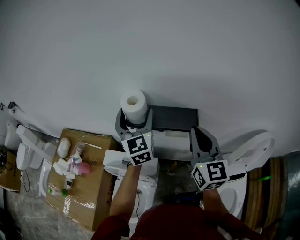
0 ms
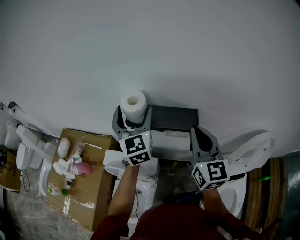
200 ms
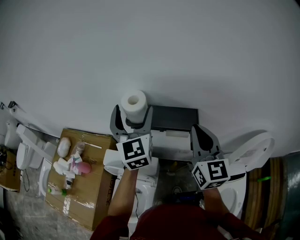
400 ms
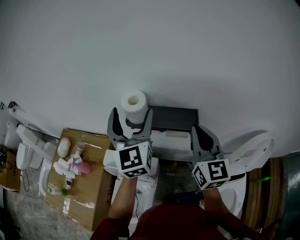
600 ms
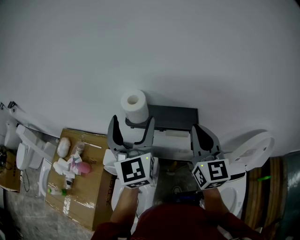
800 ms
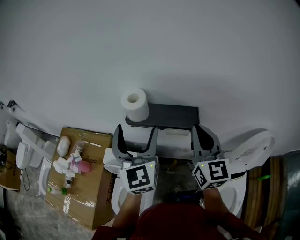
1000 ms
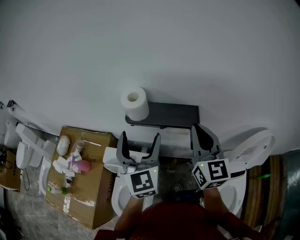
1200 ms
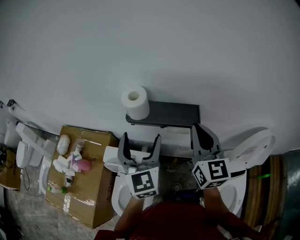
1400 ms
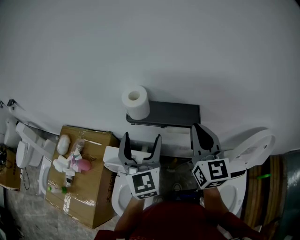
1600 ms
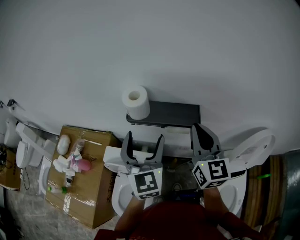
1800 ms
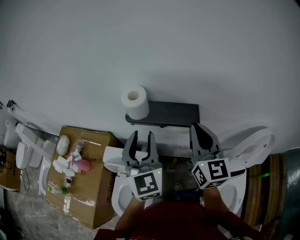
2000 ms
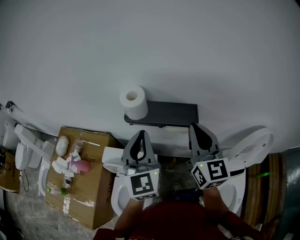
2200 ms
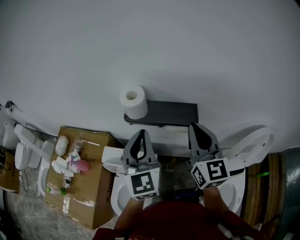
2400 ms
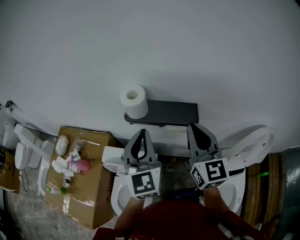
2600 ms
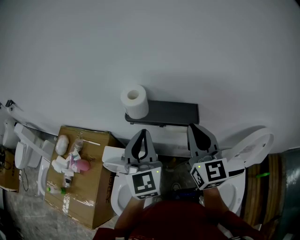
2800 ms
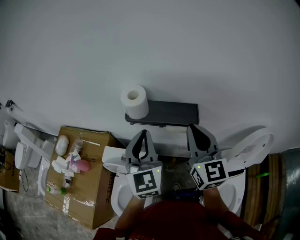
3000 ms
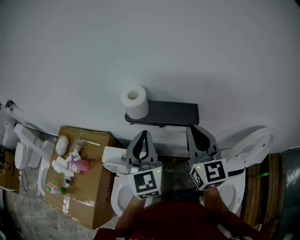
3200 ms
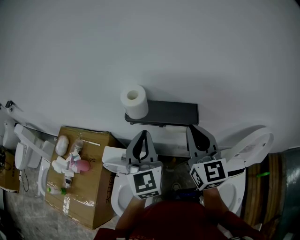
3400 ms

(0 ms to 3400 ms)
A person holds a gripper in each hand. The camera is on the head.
0 ms - 1600 ms: The left gripper goes approximately 10 cm backward.
1600 ms - 3400 ms: The left gripper closes up.

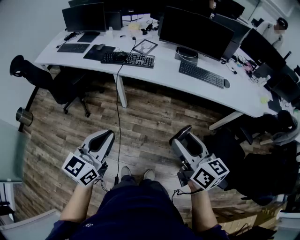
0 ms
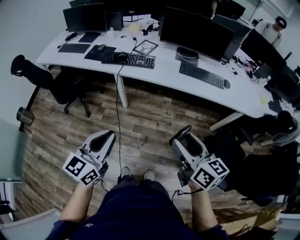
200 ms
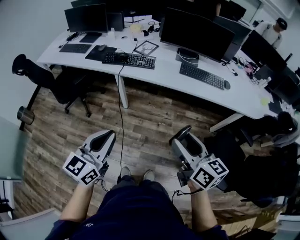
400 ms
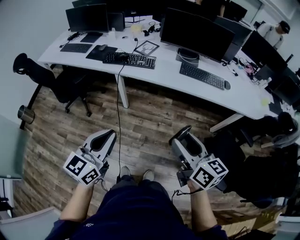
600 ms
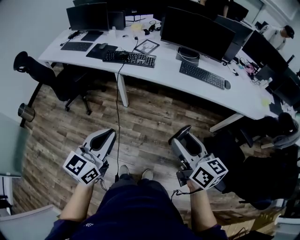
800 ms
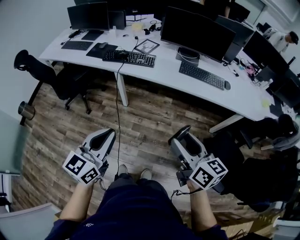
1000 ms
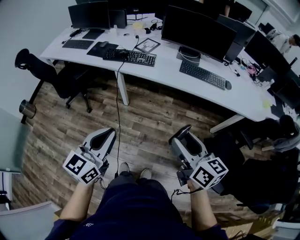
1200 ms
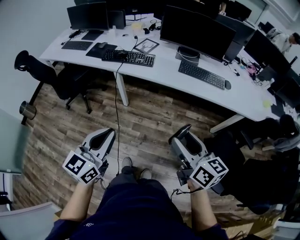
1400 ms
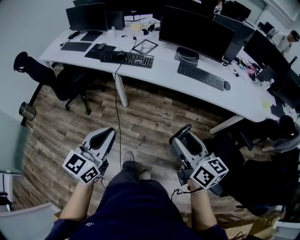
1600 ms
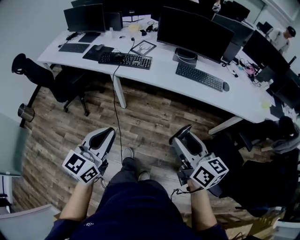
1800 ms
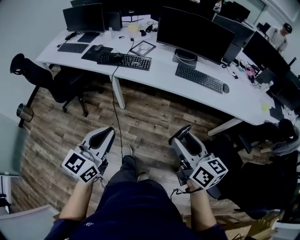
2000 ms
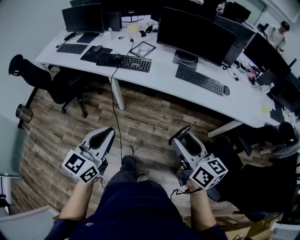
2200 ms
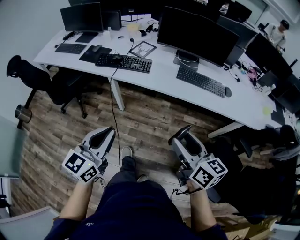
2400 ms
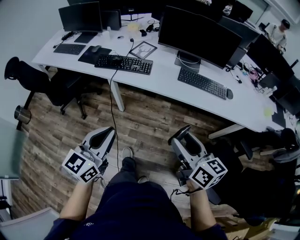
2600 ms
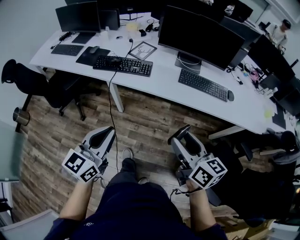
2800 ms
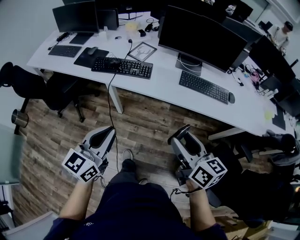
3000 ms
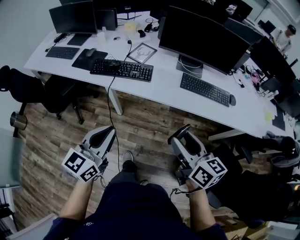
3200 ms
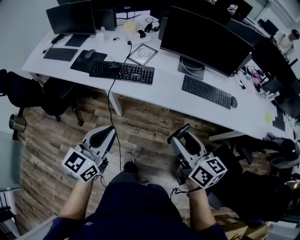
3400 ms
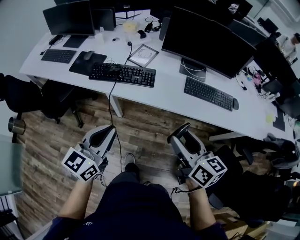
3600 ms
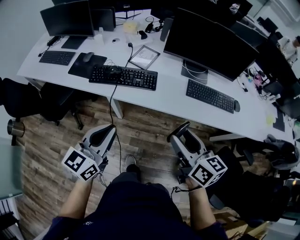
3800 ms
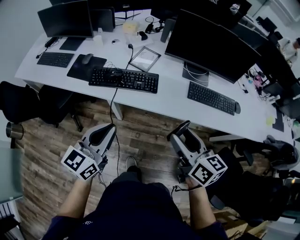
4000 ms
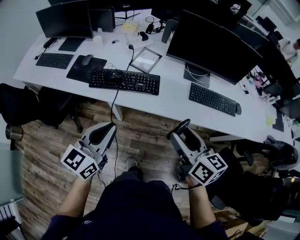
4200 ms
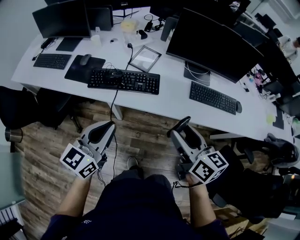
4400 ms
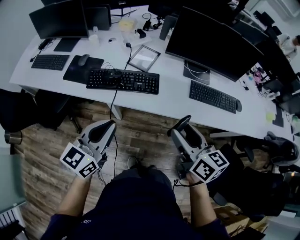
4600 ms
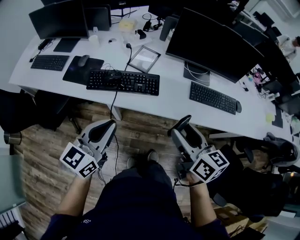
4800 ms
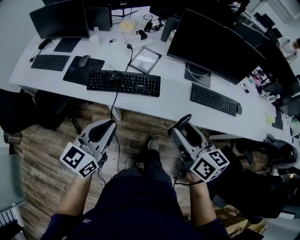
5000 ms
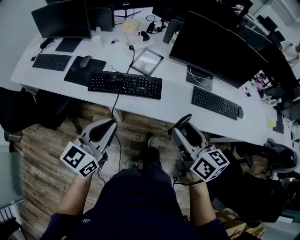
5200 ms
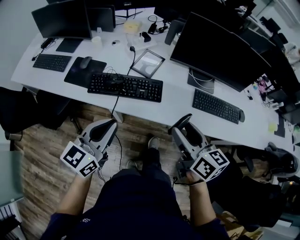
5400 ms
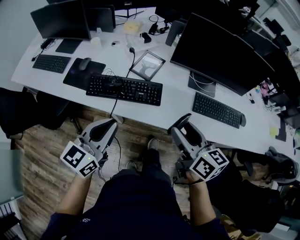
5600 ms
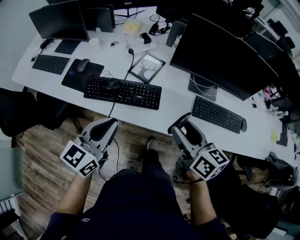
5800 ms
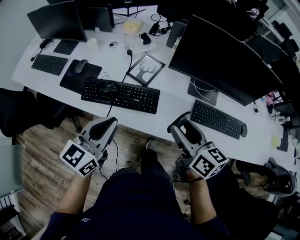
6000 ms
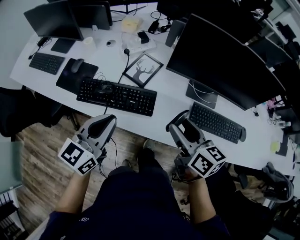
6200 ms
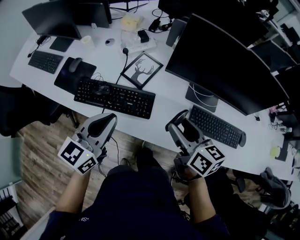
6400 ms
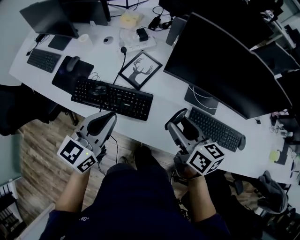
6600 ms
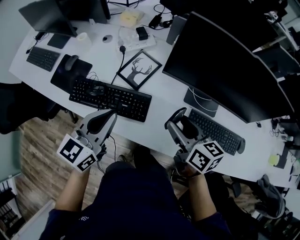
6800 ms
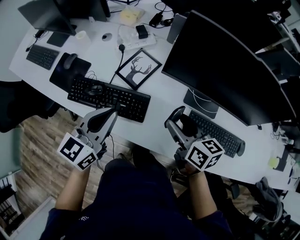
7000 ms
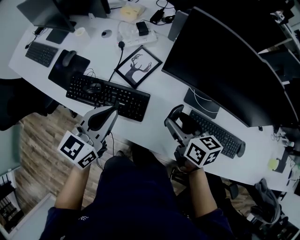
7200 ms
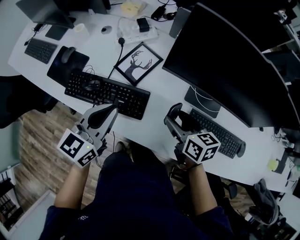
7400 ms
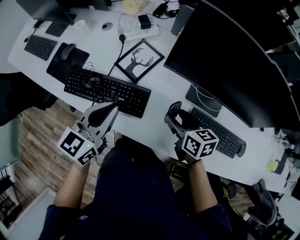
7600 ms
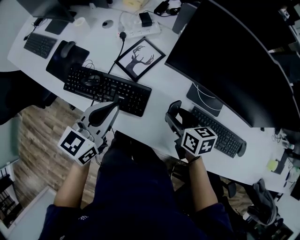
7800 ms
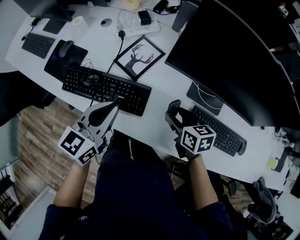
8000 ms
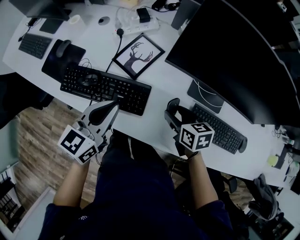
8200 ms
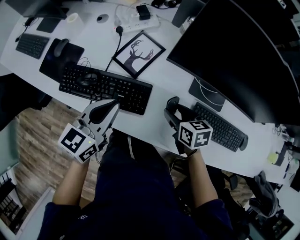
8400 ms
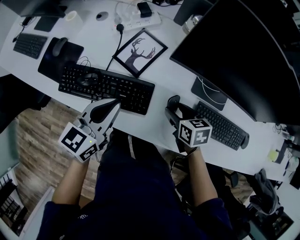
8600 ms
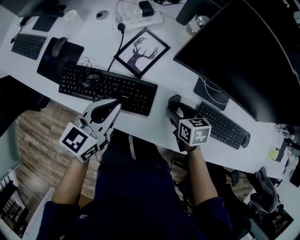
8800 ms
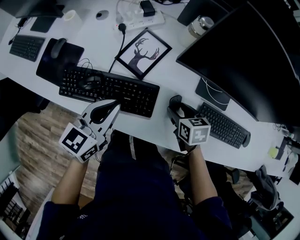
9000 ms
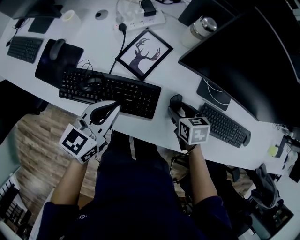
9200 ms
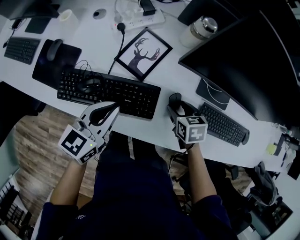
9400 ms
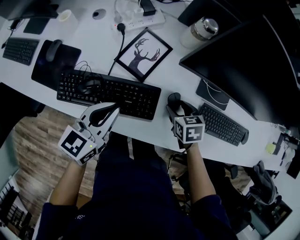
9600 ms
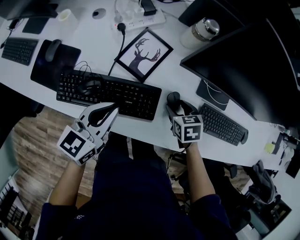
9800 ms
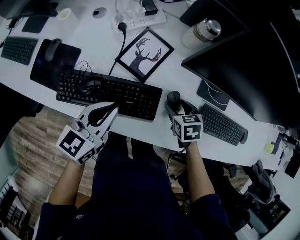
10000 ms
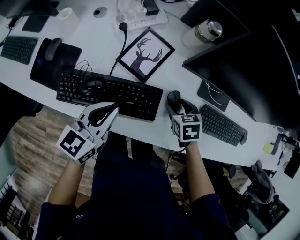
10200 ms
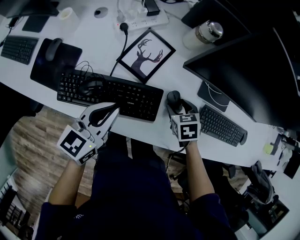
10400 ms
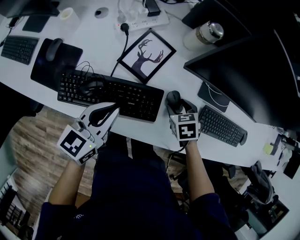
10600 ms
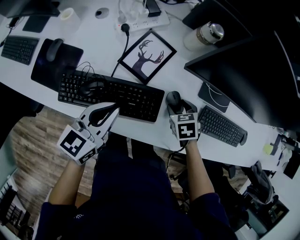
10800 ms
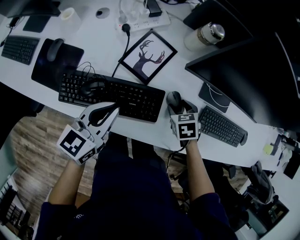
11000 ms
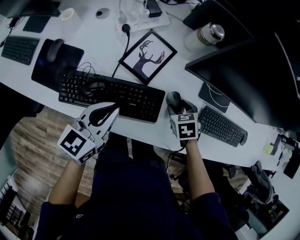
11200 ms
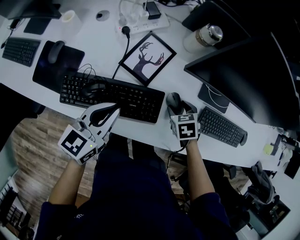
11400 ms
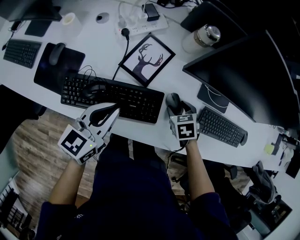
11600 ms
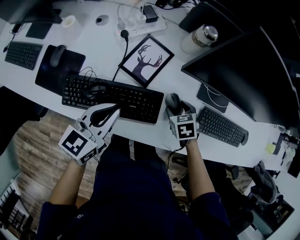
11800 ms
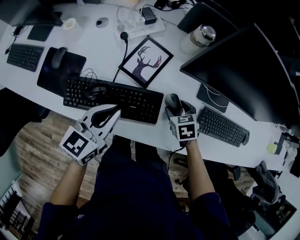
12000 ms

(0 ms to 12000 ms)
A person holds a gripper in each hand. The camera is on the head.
0 ms - 1600 ms: The grippers both shift to the right by about 5 cm.
1600 ms - 3000 ms: Both grippers move forward, some 15 cm.
3000 ms - 4400 ms: Both grippers move forward and to the left, about 20 cm.
4400 ms - 6000 ms: The grippers both shift forward by some 15 cm.
6000 ms - 7600 ms: The right gripper travels downward, forward and to the right by roughly 20 cm, and changes its angle by approximately 20 degrees. Meanwhile the left gripper heads forward, to the right and downward, covering roughly 15 cm.
7600 ms - 9000 ms: The grippers both shift downward by some 10 cm. The right gripper turns by approximately 20 degrees.
9000 ms - 10400 ms: The grippers move only a little.
10400 ms - 12000 ms: The grippers move only a little.

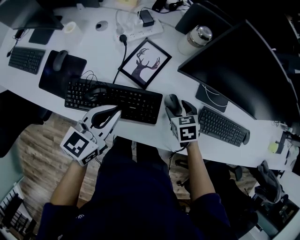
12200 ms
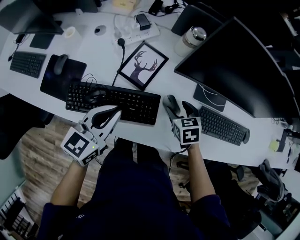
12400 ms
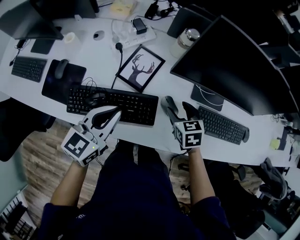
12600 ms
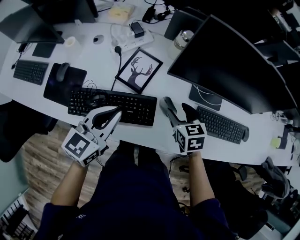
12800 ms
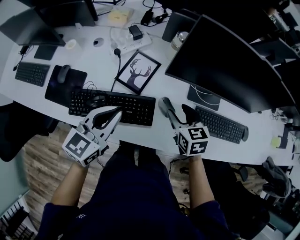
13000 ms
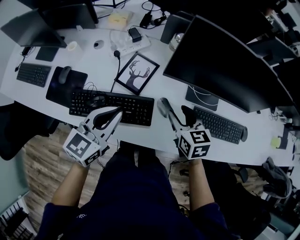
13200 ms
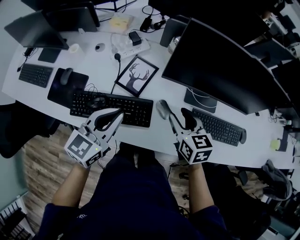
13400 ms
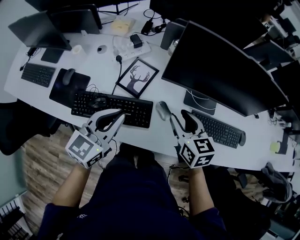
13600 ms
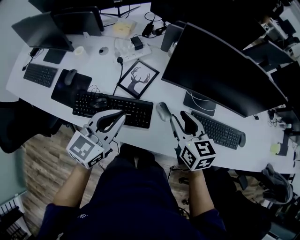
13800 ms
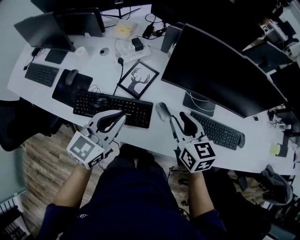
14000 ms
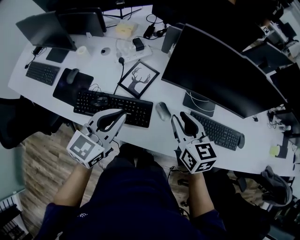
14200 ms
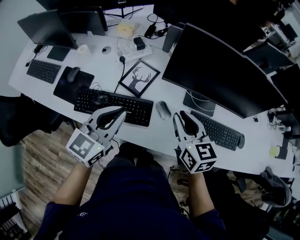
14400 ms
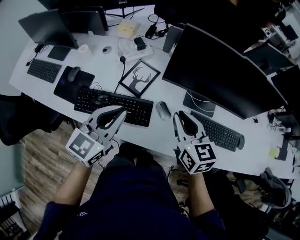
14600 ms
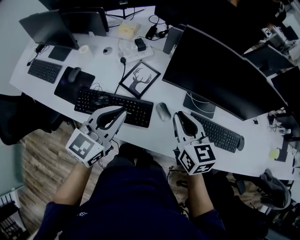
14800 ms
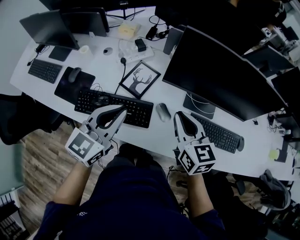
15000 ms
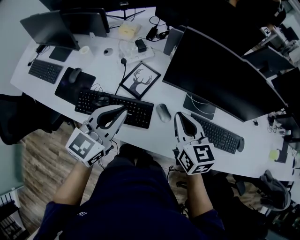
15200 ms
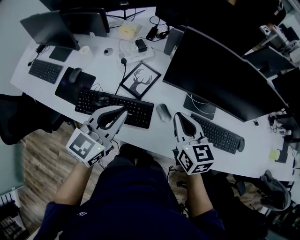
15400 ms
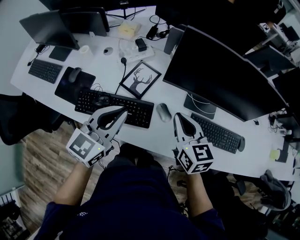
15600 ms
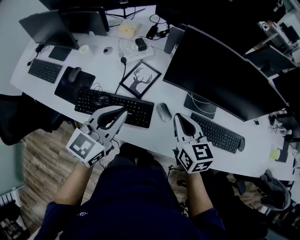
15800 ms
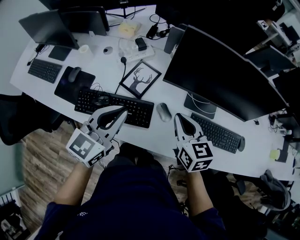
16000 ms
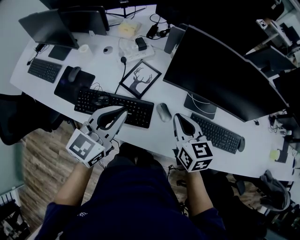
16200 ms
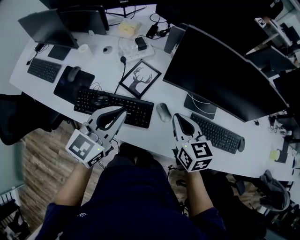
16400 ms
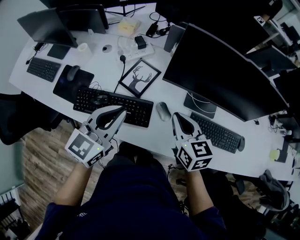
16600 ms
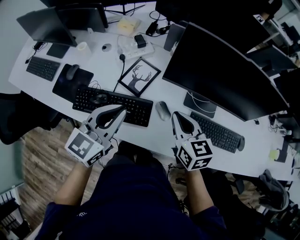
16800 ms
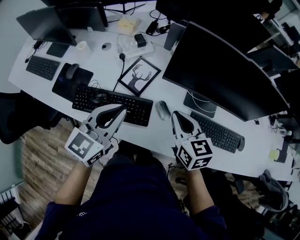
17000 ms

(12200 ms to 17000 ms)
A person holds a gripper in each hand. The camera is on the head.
12200 ms - 13800 ms: The left gripper is displaced upward and to the right by approximately 10 cm. The right gripper is displaced upward by roughly 20 cm, tilts its fingers some 30 degrees upward, and closes its fingers.
13800 ms - 15400 ms: The right gripper closes.
15400 ms - 17000 ms: The grippers make only small movements.

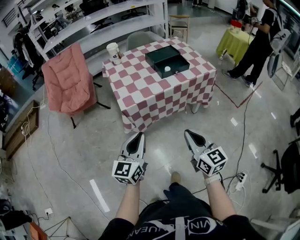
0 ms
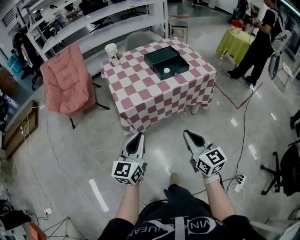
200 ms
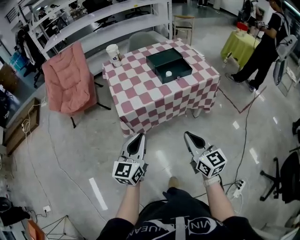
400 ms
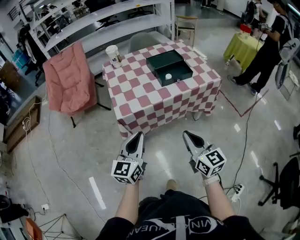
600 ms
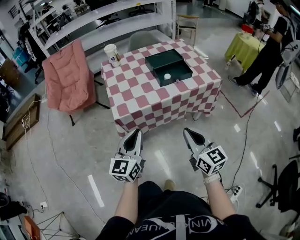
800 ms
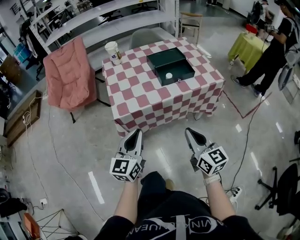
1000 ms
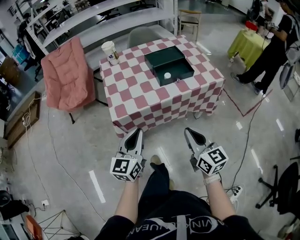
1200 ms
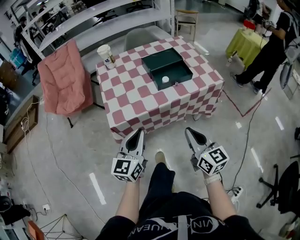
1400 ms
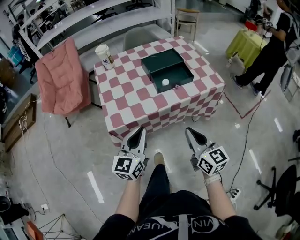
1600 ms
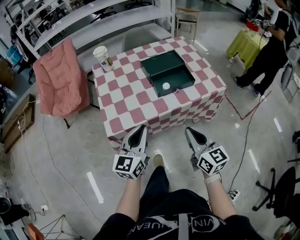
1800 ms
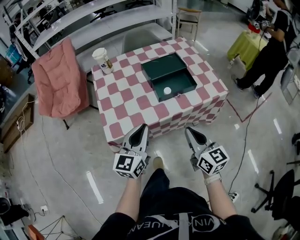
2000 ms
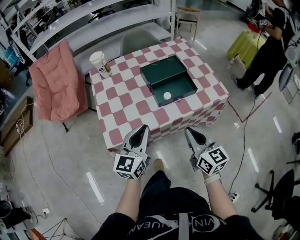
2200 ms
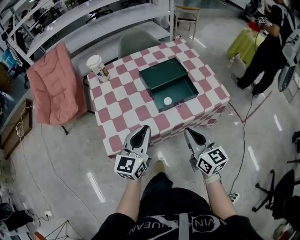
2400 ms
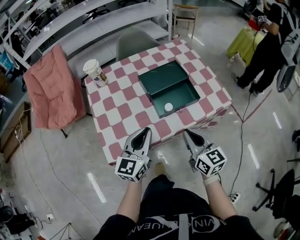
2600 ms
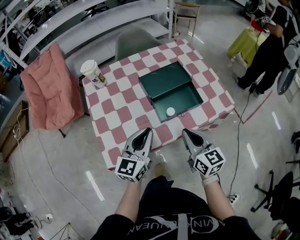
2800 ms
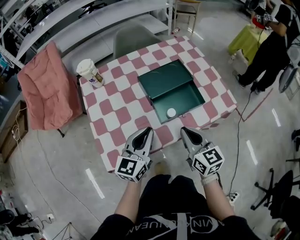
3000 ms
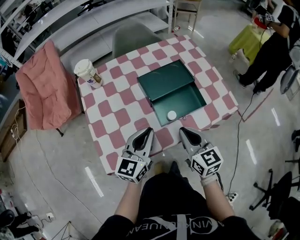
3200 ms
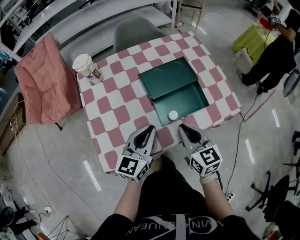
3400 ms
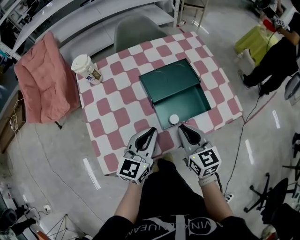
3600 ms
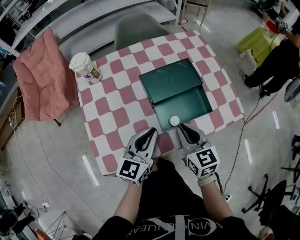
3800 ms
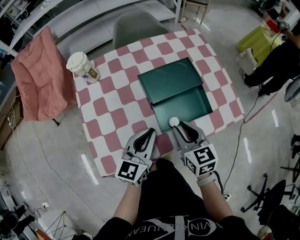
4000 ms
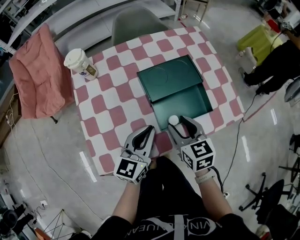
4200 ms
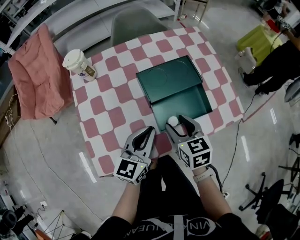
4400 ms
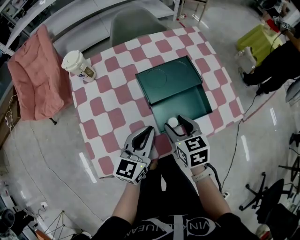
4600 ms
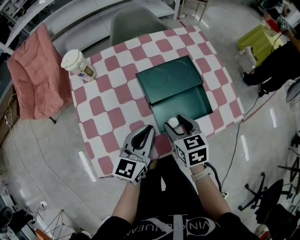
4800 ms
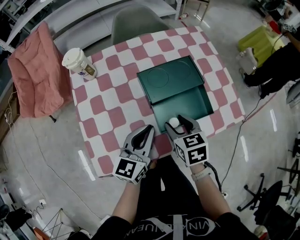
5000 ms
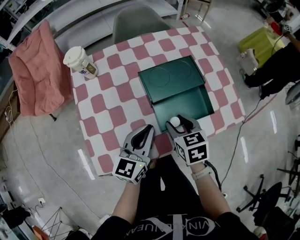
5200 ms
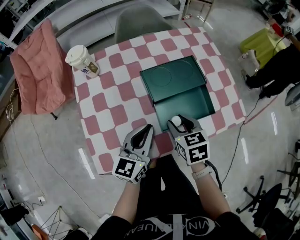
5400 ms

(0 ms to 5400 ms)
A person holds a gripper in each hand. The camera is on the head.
0 ms - 1400 ms: Both grippers move forward and to the right, approximately 15 cm.
1400 ms - 2800 ms: The two grippers go about 25 cm forward.
2800 ms - 4000 ms: Both grippers travel together forward, some 10 cm.
4000 ms - 5400 ms: The right gripper opens its fingers.
